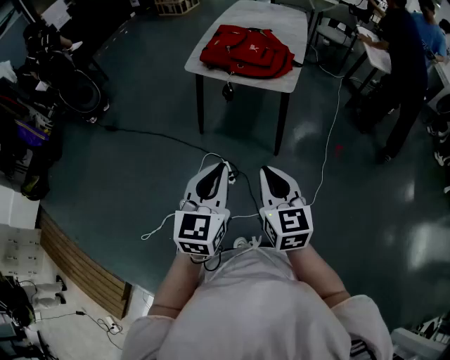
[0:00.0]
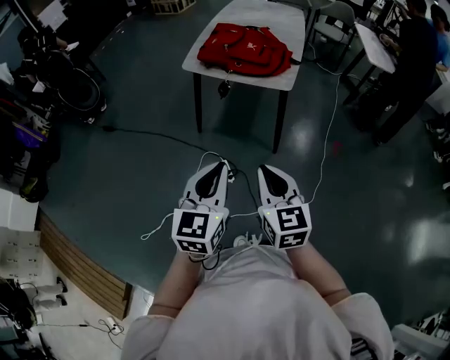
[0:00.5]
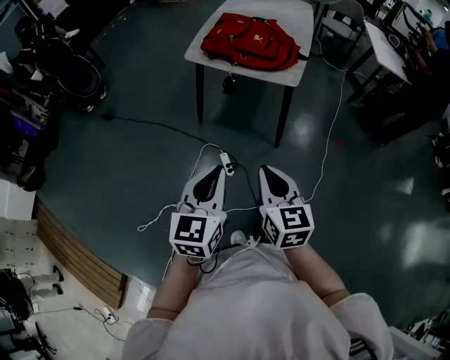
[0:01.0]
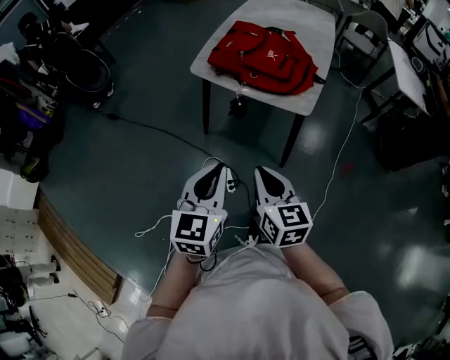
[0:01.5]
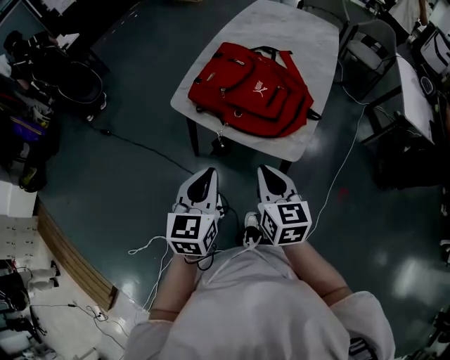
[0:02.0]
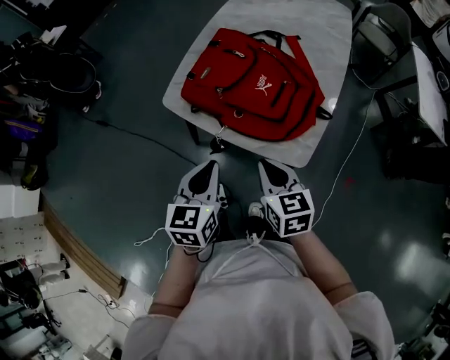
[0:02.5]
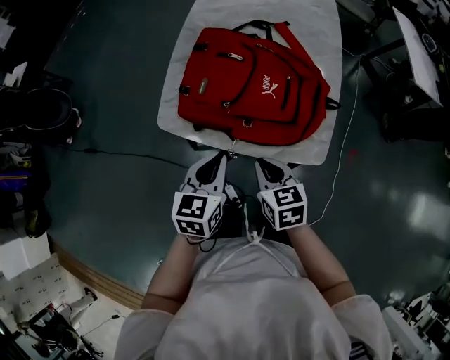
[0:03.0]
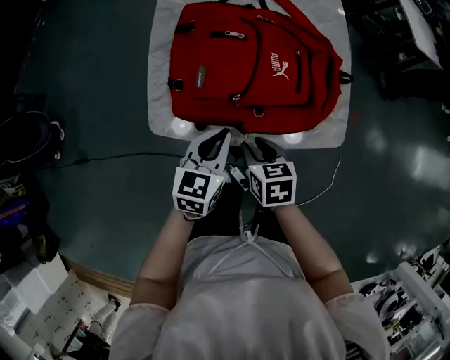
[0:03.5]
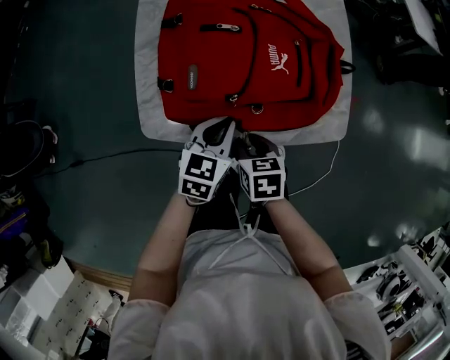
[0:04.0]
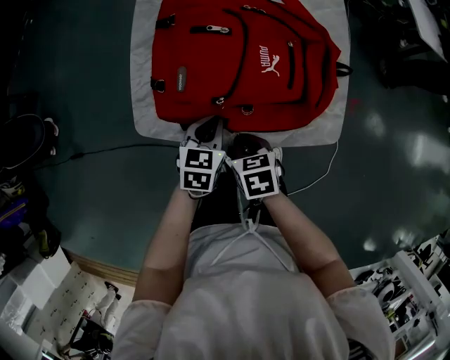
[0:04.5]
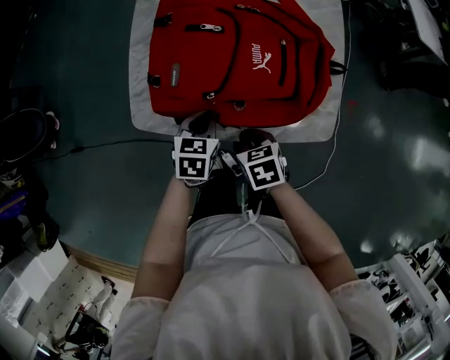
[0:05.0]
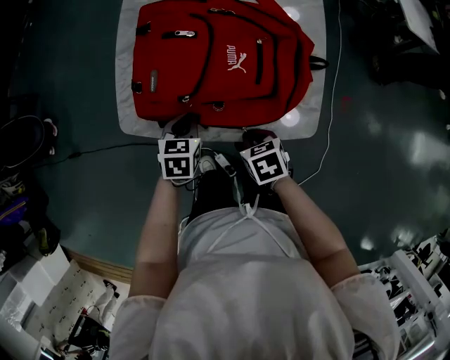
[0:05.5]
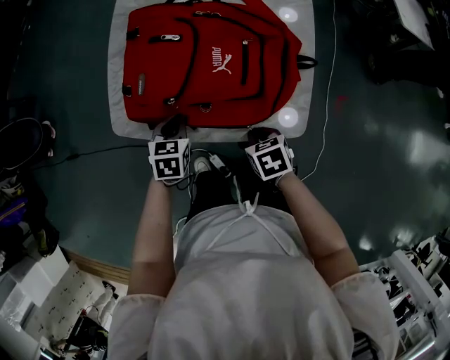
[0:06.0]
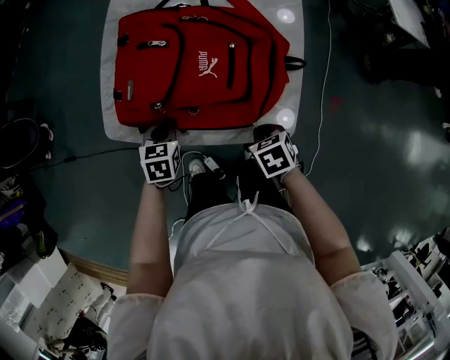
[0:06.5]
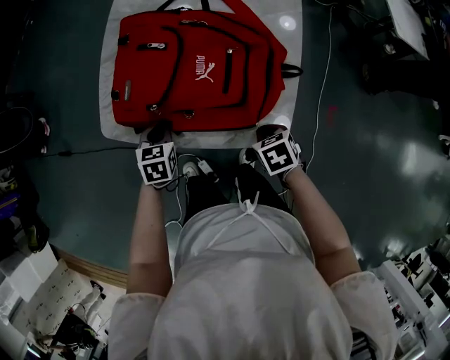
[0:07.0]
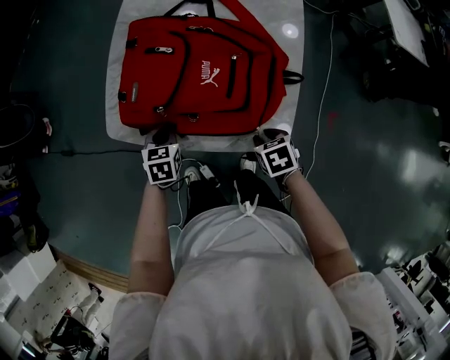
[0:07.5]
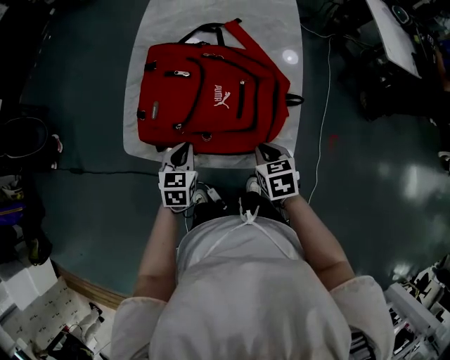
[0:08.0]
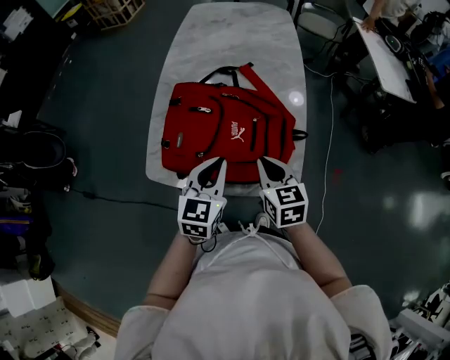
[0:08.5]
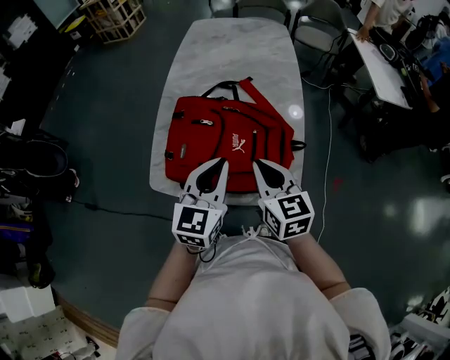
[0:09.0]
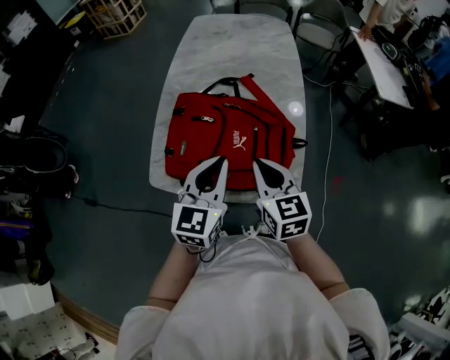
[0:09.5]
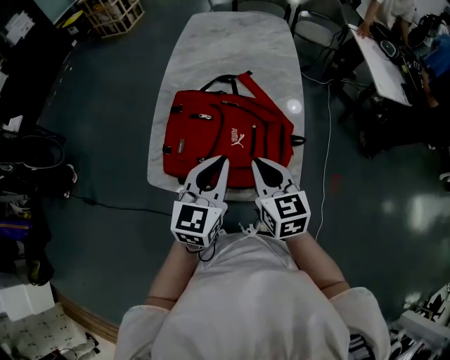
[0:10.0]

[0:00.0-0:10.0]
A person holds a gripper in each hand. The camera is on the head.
0:00.0 to 0:02.0: Both grippers travel together forward, approximately 35 cm.
0:02.0 to 0:04.0: The right gripper goes roughly 25 cm downward, angles its fingers downward, by about 30 degrees, and opens. The left gripper shifts by some 35 cm, and changes its angle by some 50 degrees.
0:04.0 to 0:06.0: The right gripper moves to the right, approximately 15 cm, swivels roughly 20 degrees, and closes. Meanwhile the left gripper turns by roughly 30 degrees.
0:06.0 to 0:08.0: The right gripper is displaced upward and to the right by approximately 10 cm. The left gripper moves upward, about 5 cm.
0:08.0 to 0:10.0: Both grippers travel together upward, some 20 cm. The left gripper rotates approximately 30 degrees; the right gripper tips its fingers upward by about 30 degrees.

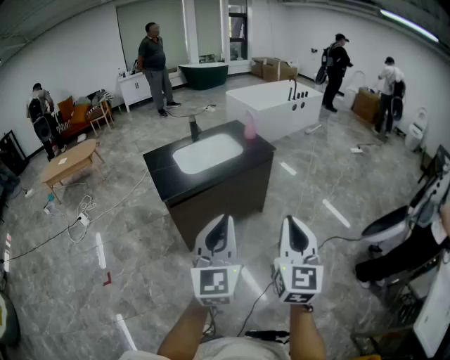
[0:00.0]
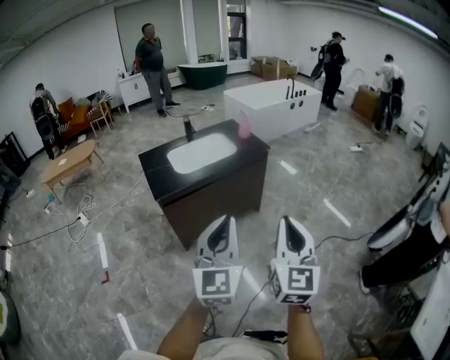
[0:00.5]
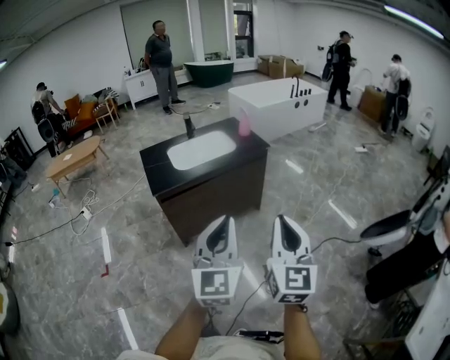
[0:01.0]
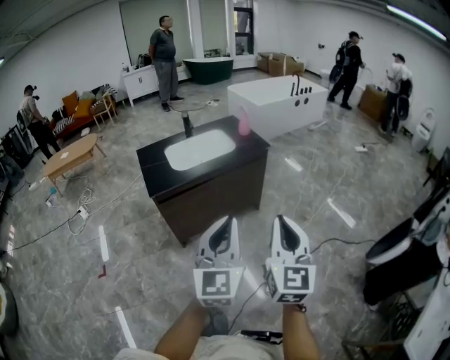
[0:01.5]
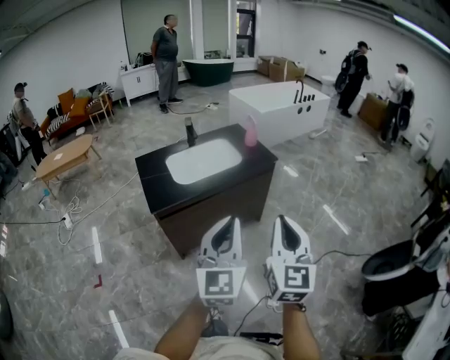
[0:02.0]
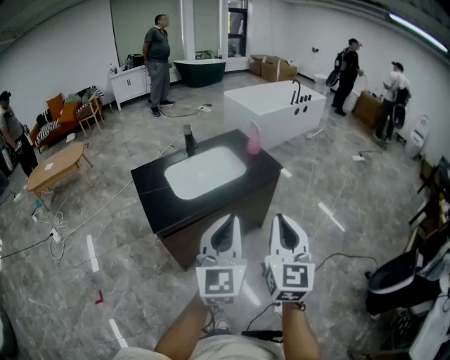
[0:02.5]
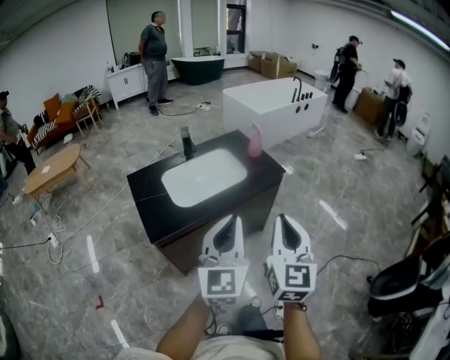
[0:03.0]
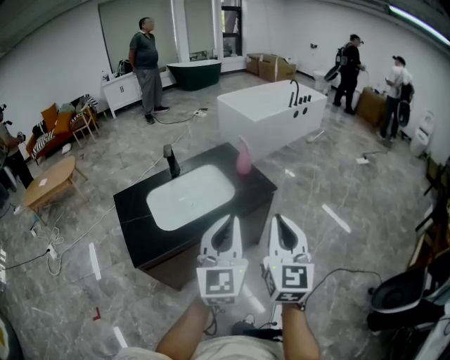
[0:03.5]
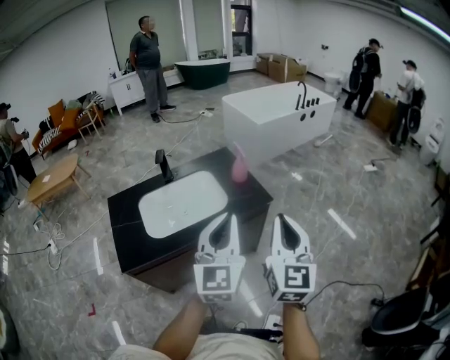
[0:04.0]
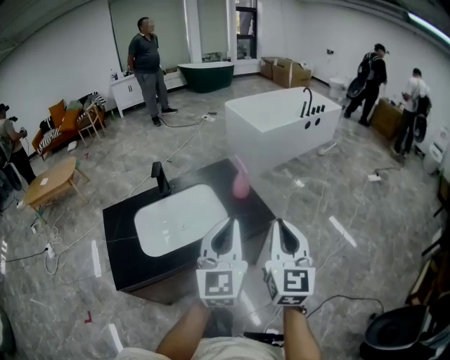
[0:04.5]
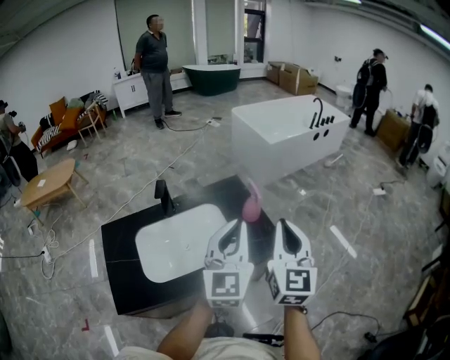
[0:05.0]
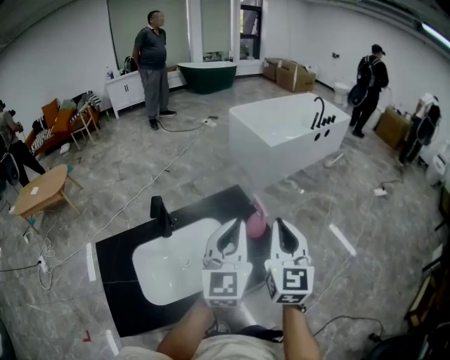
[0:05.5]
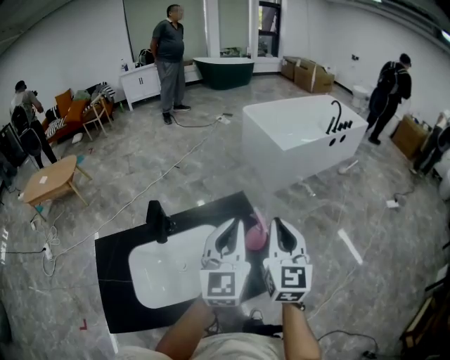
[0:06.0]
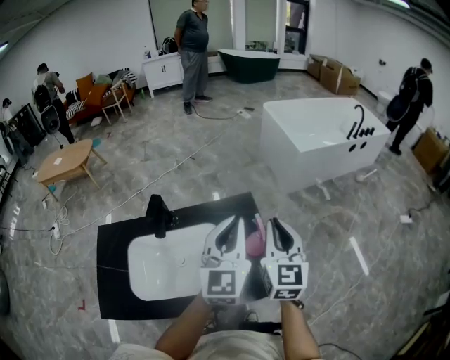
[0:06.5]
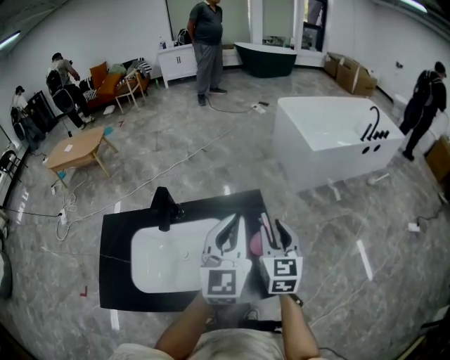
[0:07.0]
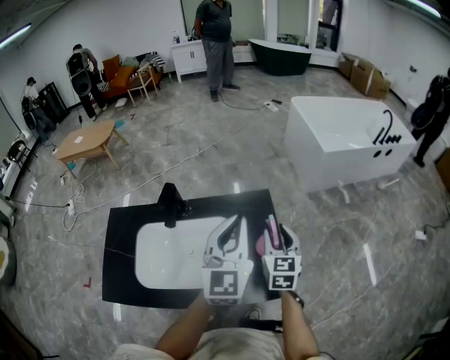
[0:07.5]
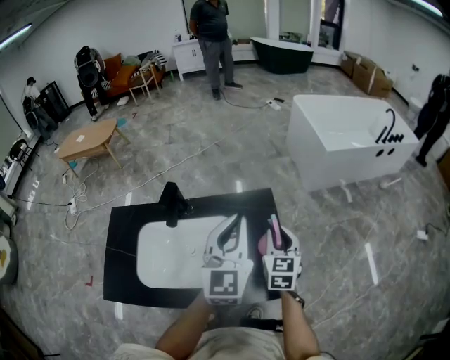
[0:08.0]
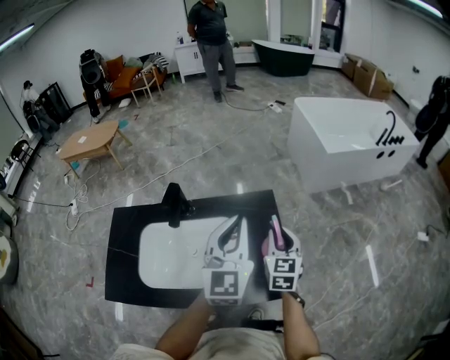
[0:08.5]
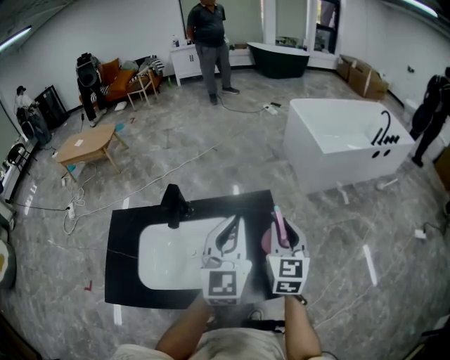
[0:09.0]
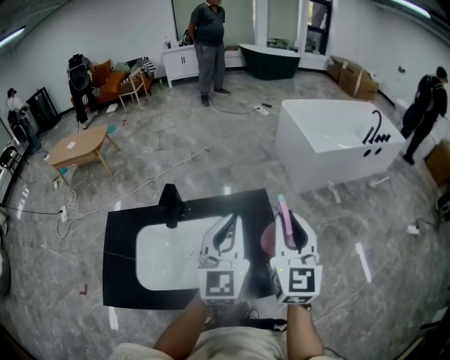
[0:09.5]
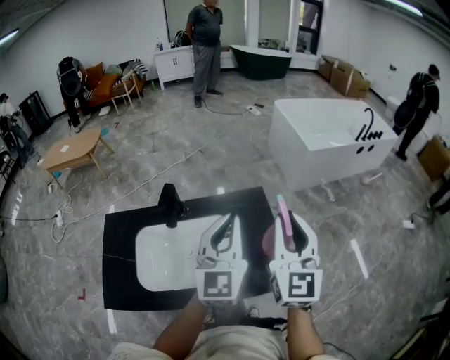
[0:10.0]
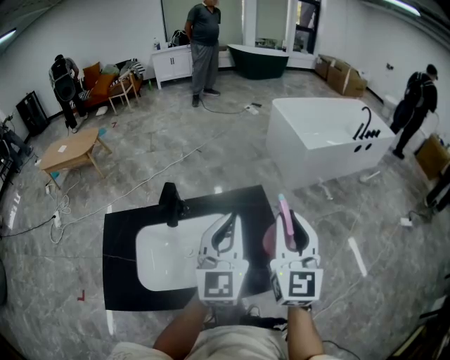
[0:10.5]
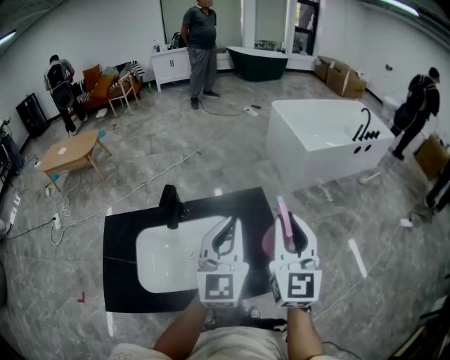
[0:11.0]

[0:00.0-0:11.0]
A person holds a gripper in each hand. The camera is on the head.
0:00.0 to 0:02.0: The two grippers go approximately 15 cm forward.
0:02.0 to 0:03.5: The two grippers go some 25 cm forward.
0:03.5 to 0:05.5: Both grippers travel together forward, roughly 40 cm.
0:05.5 to 0:07.5: The right gripper shifts approximately 25 cm downward and forward, swivels some 30 degrees, and opens up; the left gripper is displaced forward by roughly 10 cm, and turns by approximately 20 degrees.
0:07.5 to 0:09.0: The right gripper goes about 5 cm upward.
0:09.0 to 0:11.0: The right gripper heads upward and backward, covering some 15 cm.

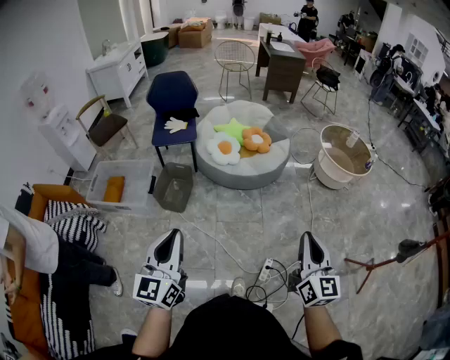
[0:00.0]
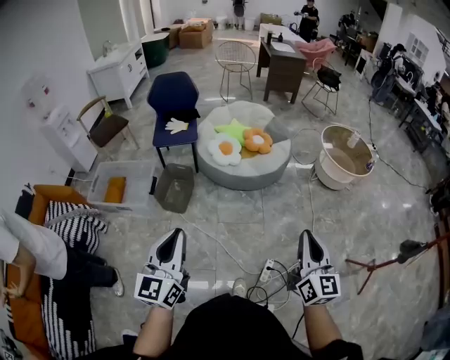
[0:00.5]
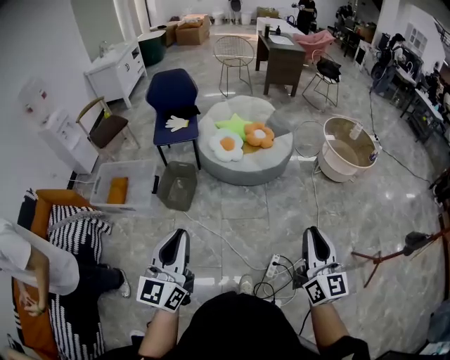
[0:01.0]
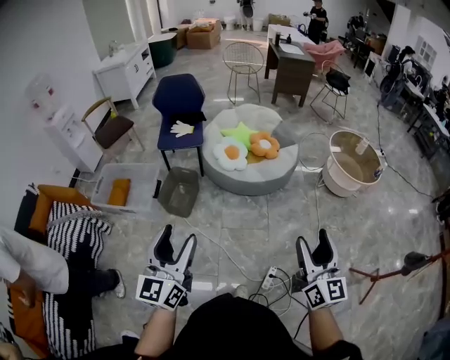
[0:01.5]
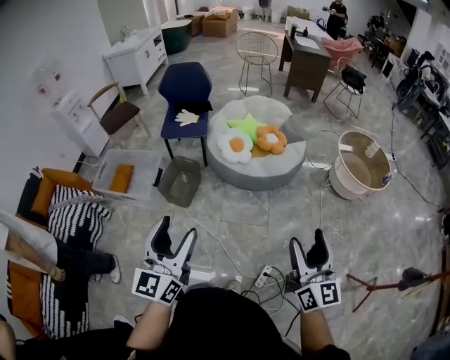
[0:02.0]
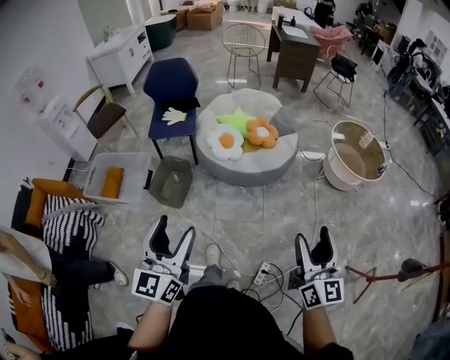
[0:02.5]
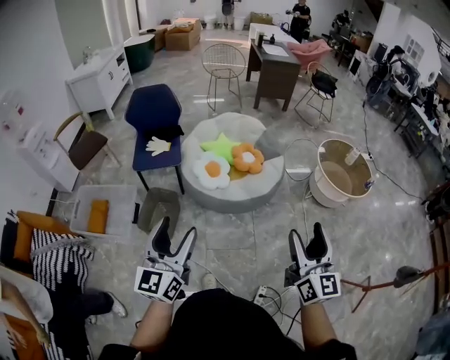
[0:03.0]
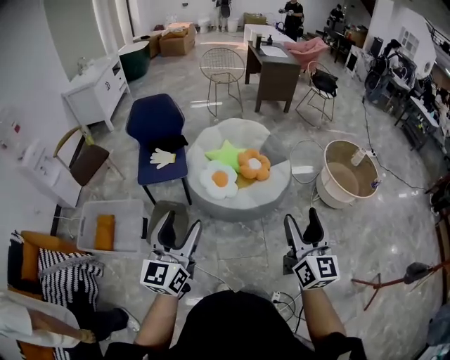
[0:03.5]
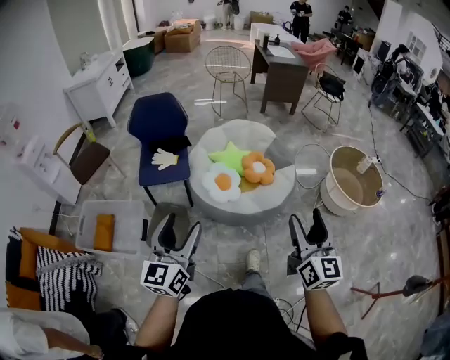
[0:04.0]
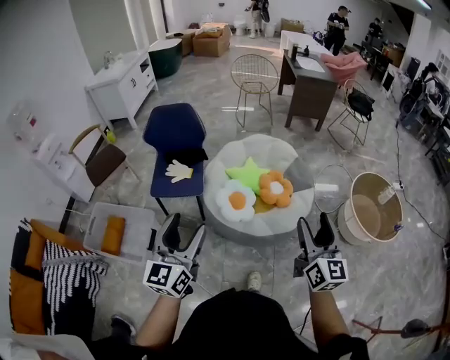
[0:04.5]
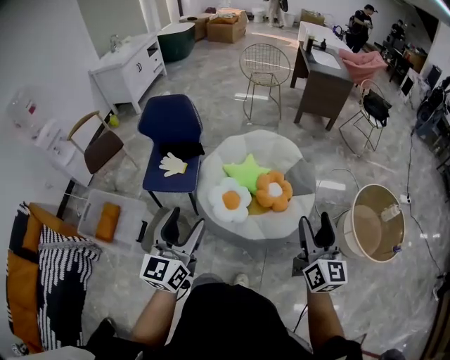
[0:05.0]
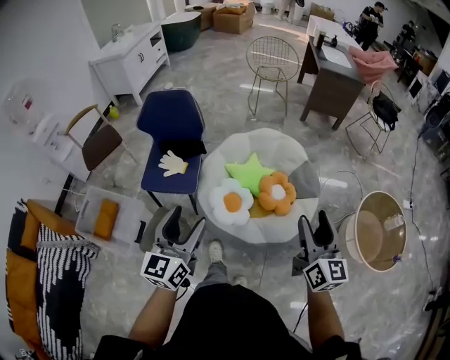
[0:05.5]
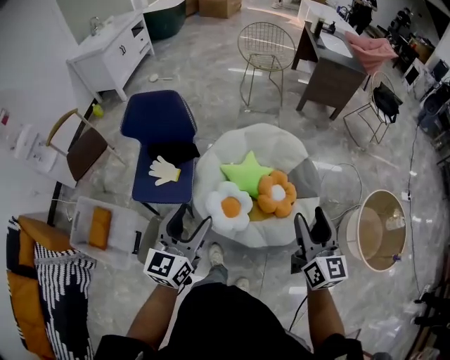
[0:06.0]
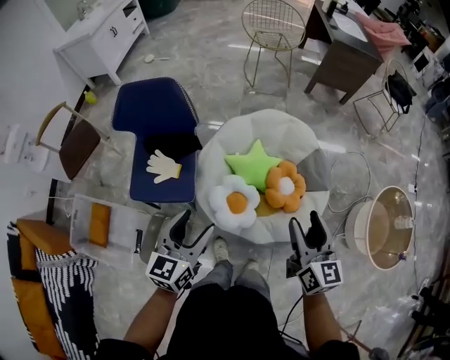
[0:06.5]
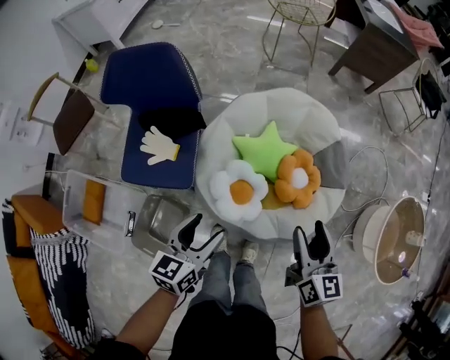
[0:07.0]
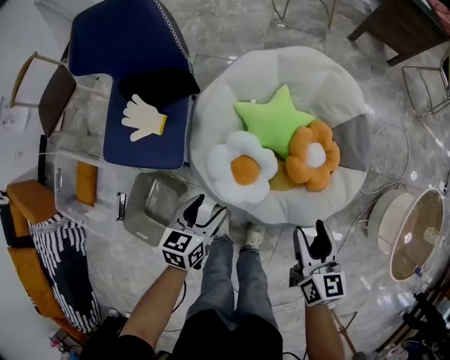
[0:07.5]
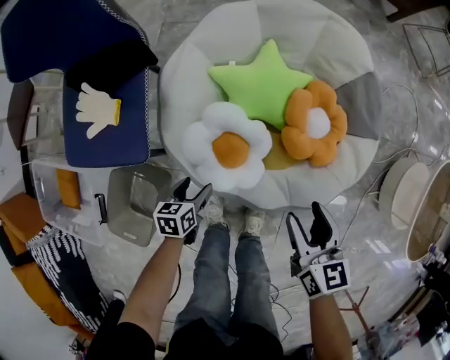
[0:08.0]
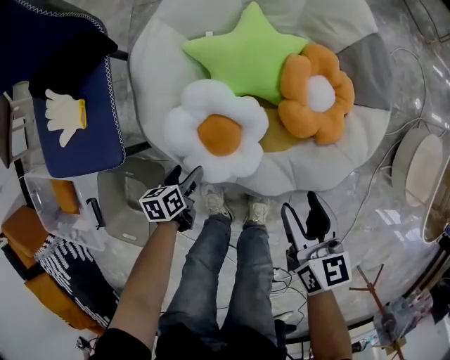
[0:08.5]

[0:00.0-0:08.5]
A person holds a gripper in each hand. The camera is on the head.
0:00.0 to 0:02.0: The right gripper moves forward, about 10 cm, and opens its fingers. The left gripper heads forward and to the right, covering approximately 10 cm, and opens.
0:02.0 to 0:04.0: Both grippers travel together forward, approximately 30 cm.
0:04.0 to 0:06.5: The two grippers travel together, forward, about 40 cm. The left gripper changes its angle by about 20 degrees. Meanwhile the right gripper rotates some 20 degrees.
0:06.5 to 0:08.5: Both grippers travel together downward, roughly 50 cm. The left gripper points its fingers approximately 40 degrees further downward, while the right gripper changes its angle by roughly 30 degrees.
